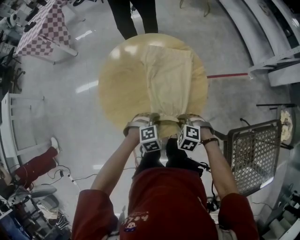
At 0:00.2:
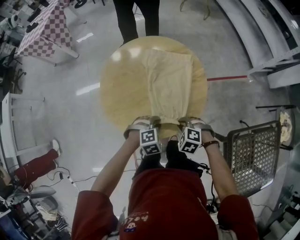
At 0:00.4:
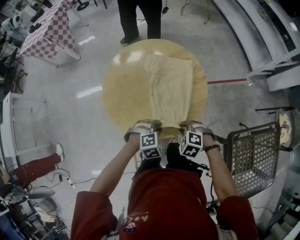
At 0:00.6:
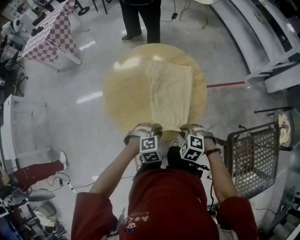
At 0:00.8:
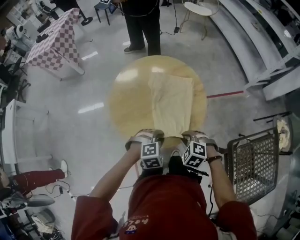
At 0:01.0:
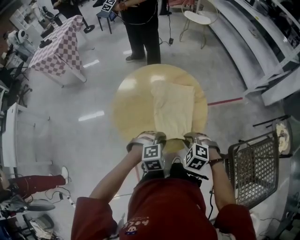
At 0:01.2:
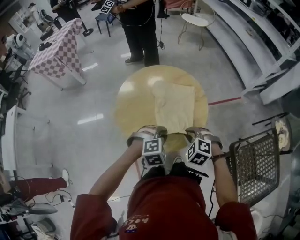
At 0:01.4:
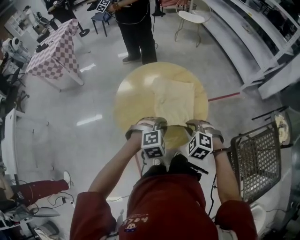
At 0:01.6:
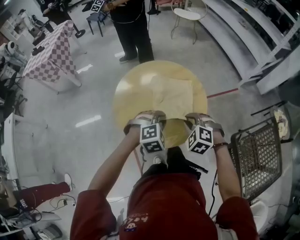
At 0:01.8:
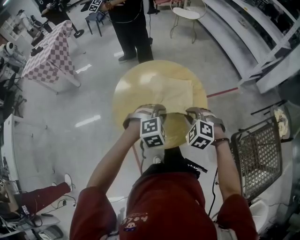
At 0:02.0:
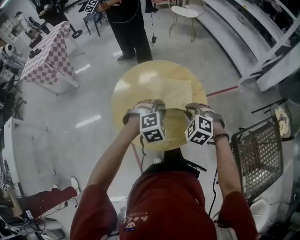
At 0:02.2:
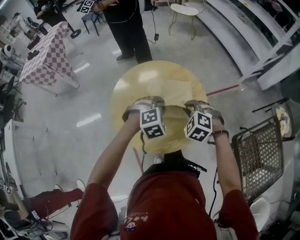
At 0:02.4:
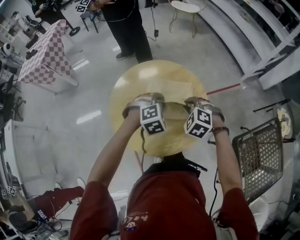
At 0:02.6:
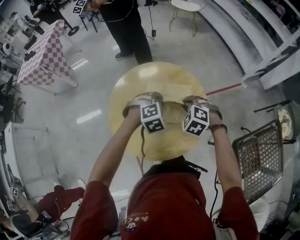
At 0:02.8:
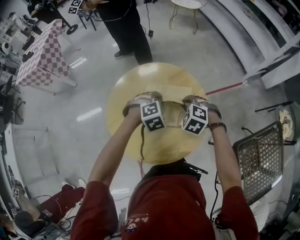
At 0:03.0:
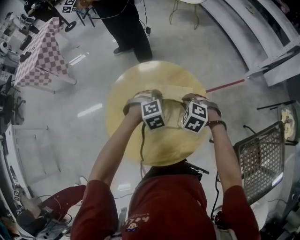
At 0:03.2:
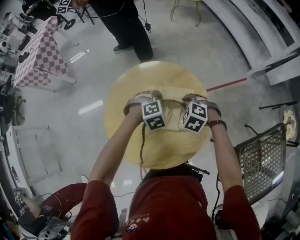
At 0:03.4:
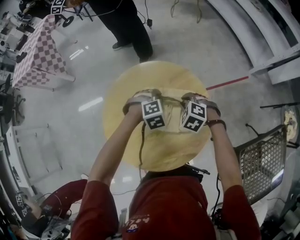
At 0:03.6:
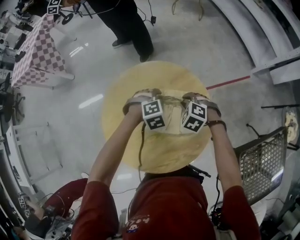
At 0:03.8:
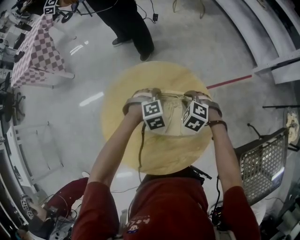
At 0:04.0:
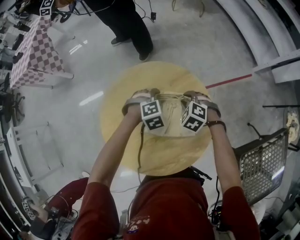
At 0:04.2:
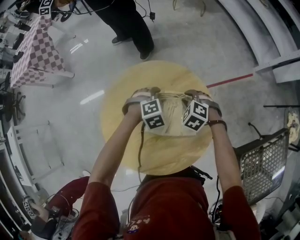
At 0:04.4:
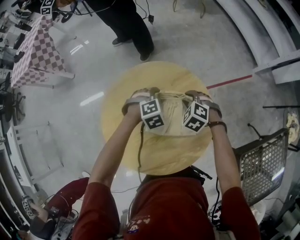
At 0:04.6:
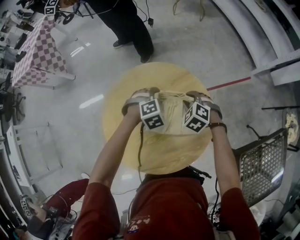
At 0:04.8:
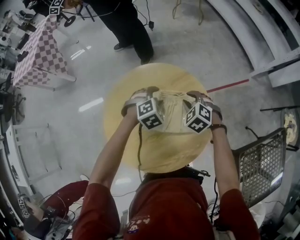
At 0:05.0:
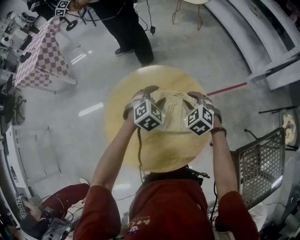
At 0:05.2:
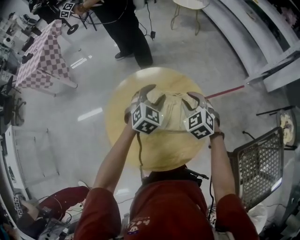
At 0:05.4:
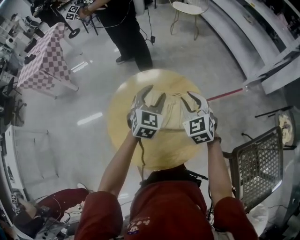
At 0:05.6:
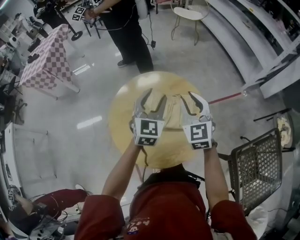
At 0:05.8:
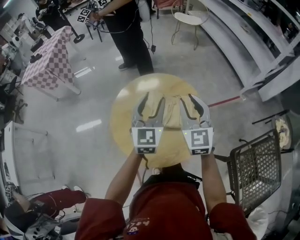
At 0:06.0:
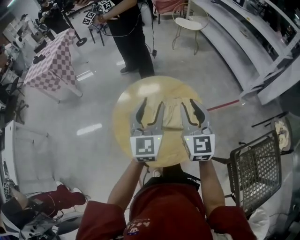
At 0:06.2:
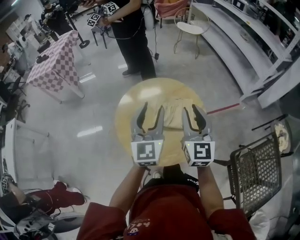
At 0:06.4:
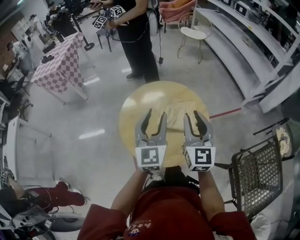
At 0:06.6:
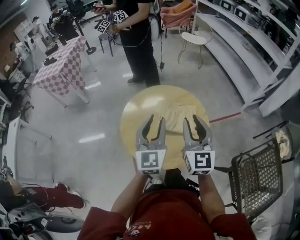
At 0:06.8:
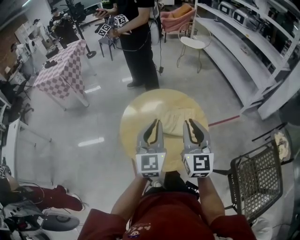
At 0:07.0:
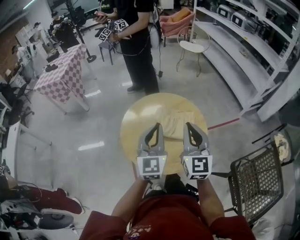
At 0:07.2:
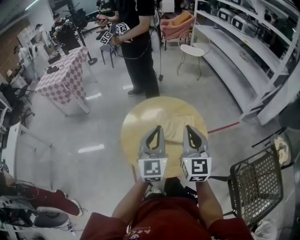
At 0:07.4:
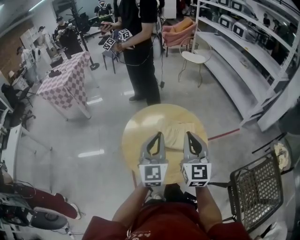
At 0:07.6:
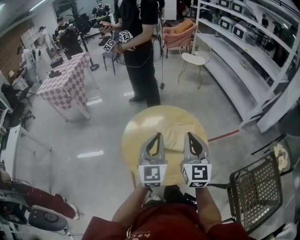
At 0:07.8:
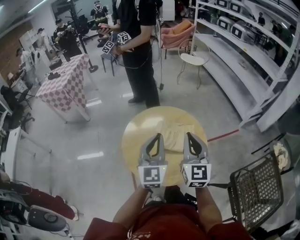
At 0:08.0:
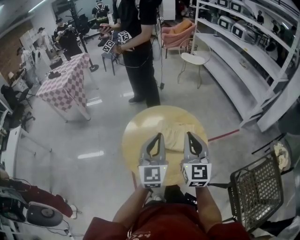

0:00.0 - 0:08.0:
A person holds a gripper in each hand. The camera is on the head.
0:00.0 - 0:01.6: The two grippers go roughly 15 cm upward. The right gripper swivels some 20 degrees.
0:01.6 - 0:03.2: The right gripper is displaced forward by approximately 20 cm. Meanwhile the left gripper is displaced forward and downward by about 25 cm.
0:03.2 - 0:04.8: The left gripper opens its fingers, while the right gripper shifts approximately 5 cm forward.
0:04.8 - 0:06.4: Both grippers move upward and backward, some 35 cm. The right gripper angles its fingers upward, by some 60 degrees. The left gripper tips its fingers upward by about 60 degrees.
0:06.4 - 0:08.0: The left gripper closes its fingers. The right gripper closes its fingers.

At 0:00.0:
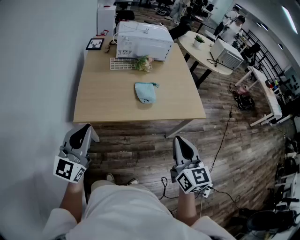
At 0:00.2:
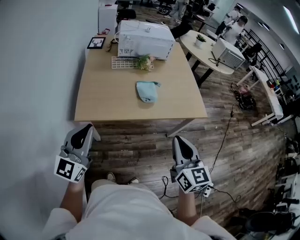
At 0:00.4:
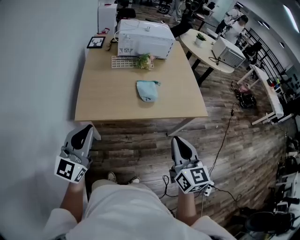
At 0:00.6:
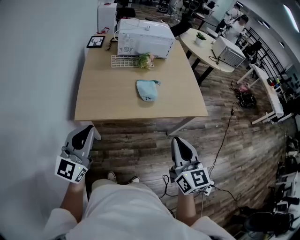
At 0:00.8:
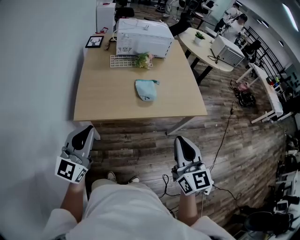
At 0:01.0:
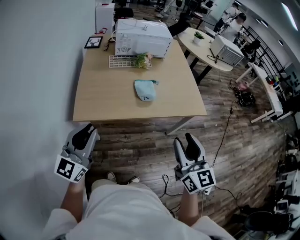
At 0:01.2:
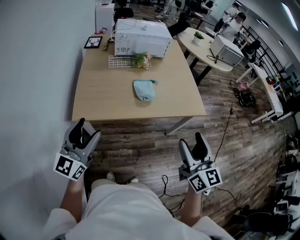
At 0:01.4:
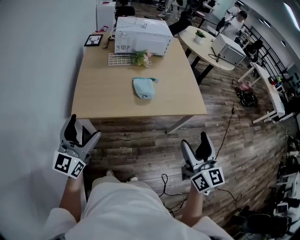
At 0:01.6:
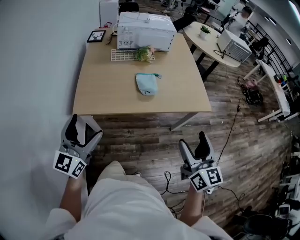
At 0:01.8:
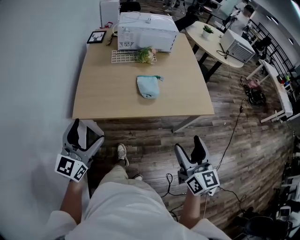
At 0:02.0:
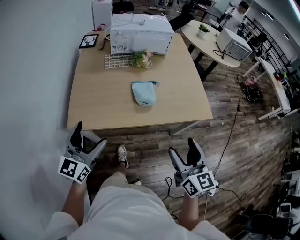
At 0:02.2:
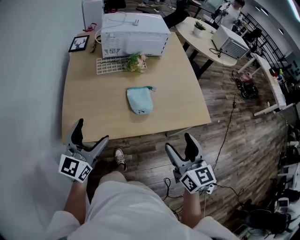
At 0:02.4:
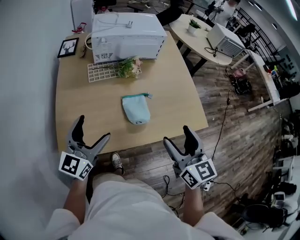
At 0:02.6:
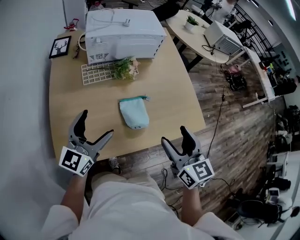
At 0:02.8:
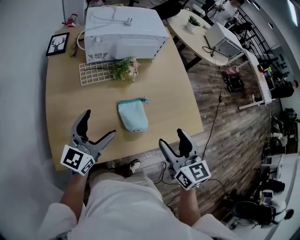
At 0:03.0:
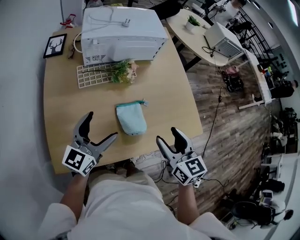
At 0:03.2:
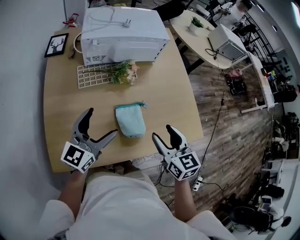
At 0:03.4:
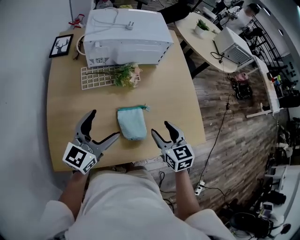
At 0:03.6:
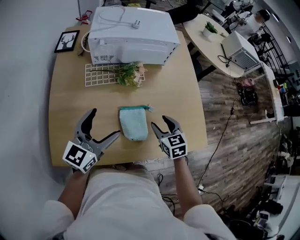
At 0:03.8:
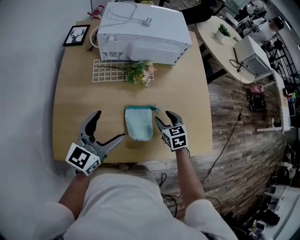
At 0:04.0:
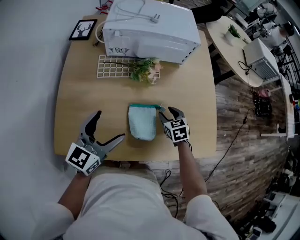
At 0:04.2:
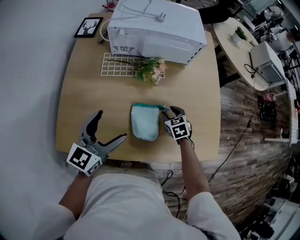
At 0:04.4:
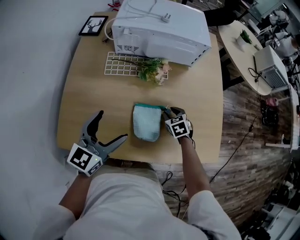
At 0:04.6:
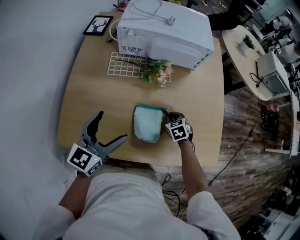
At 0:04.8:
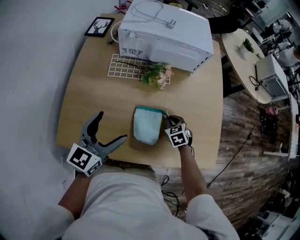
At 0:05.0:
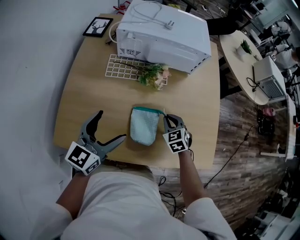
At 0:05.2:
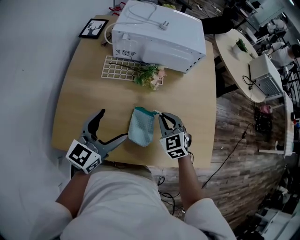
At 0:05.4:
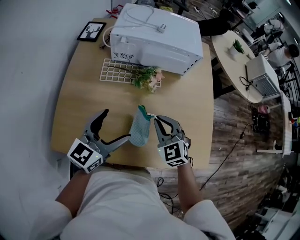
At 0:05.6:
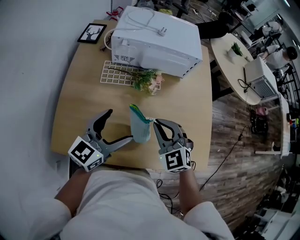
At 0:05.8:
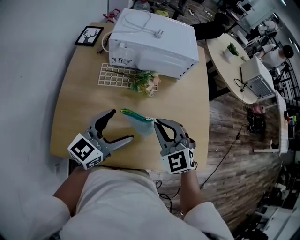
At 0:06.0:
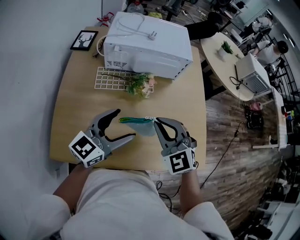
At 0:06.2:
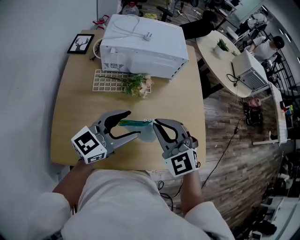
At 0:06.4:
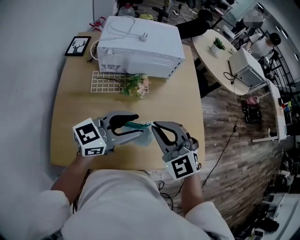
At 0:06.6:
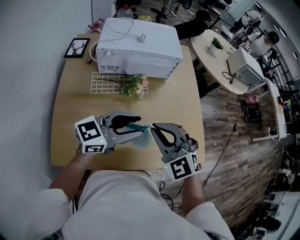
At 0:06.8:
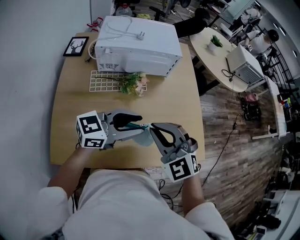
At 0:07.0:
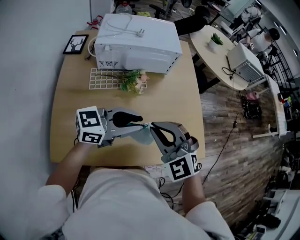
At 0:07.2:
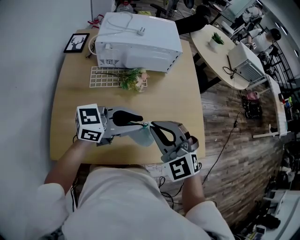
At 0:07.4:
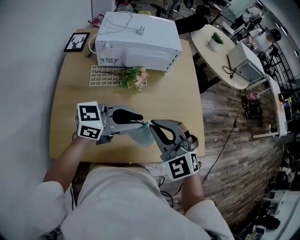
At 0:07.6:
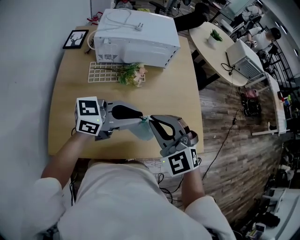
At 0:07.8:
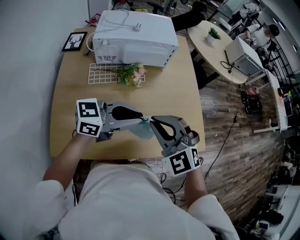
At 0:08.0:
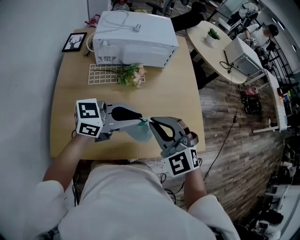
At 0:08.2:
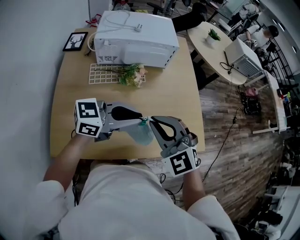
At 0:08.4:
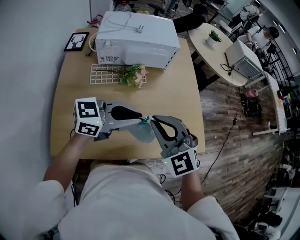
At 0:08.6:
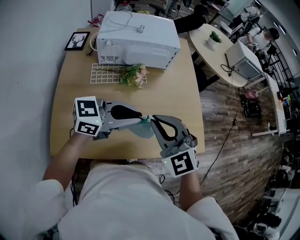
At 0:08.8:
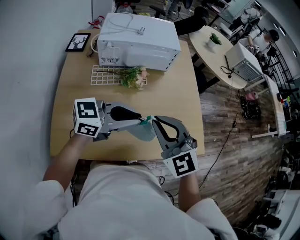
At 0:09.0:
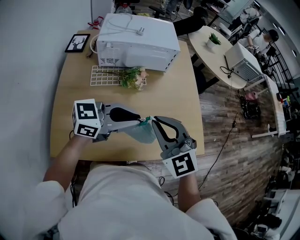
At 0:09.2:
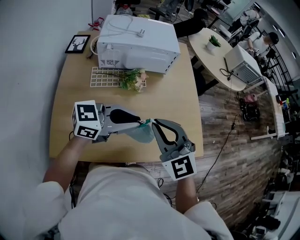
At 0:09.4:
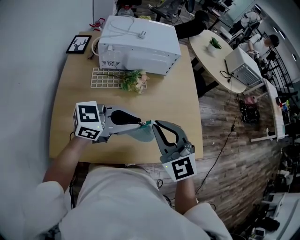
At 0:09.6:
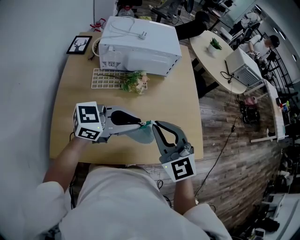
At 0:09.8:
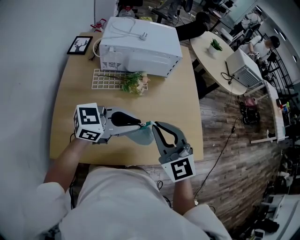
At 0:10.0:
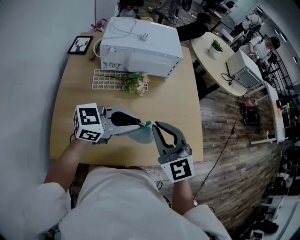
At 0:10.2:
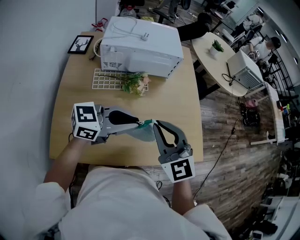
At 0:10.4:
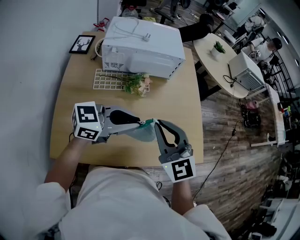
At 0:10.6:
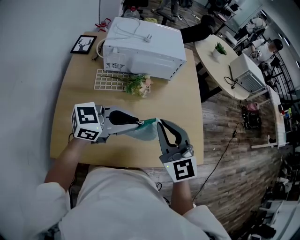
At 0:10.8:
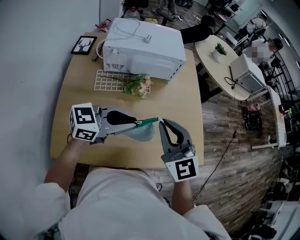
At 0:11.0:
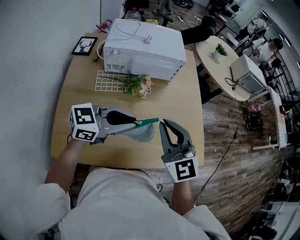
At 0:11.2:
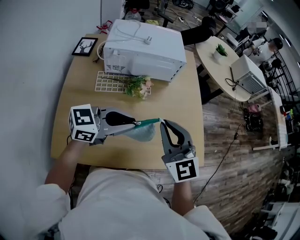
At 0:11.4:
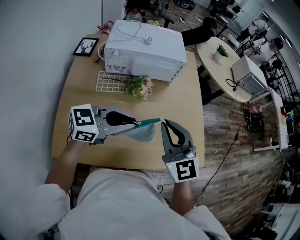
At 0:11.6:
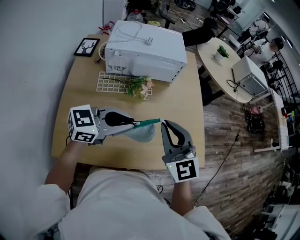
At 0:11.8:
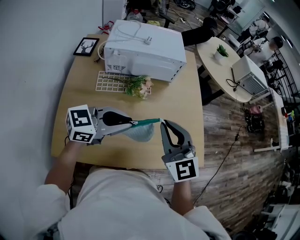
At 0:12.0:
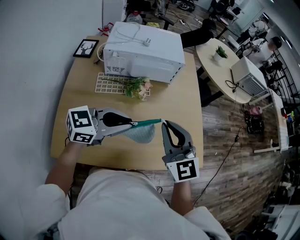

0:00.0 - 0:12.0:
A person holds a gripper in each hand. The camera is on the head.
0:00.0 - 0:01.6: The right gripper travels to the right by approximately 10 cm, and opens its fingers; the left gripper opens its fingers.
0:01.6 - 0:03.0: The two grippers go about 35 cm forward. The left gripper rotates about 20 degrees. The right gripper swivels some 20 degrees.
0:03.0 - 0:04.4: The right gripper heads downward and forward, covering roughly 35 cm, and tilts its fingers roughly 30 degrees downward.
0:04.4 - 0:06.0: The left gripper heads upward and to the right, covering about 10 cm, while the right gripper is displaced upward by approximately 30 cm, angles its fingers upward, by roughly 30 degrees, and closes up.
0:06.0 - 0:07.6: The right gripper shifts about 5 cm backward, while the left gripper goes approximately 10 cm to the right, turns by roughly 40 degrees, and closes its fingers.
0:07.6 - 0:09.0: There are only small adjustments of the grippers.
0:09.0 - 0:12.0: There are only small adjustments of the grippers.

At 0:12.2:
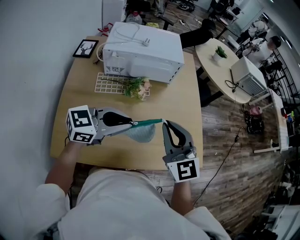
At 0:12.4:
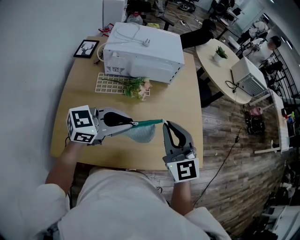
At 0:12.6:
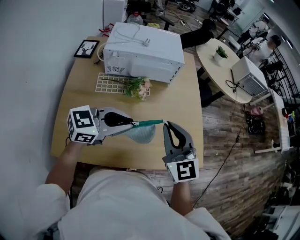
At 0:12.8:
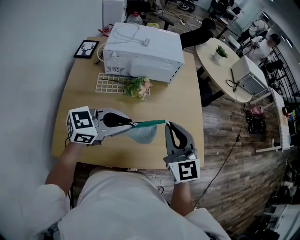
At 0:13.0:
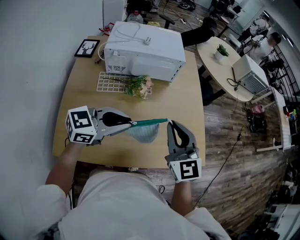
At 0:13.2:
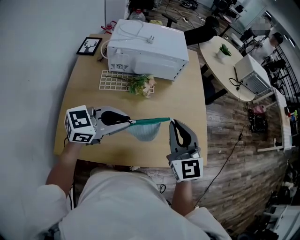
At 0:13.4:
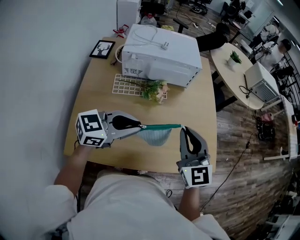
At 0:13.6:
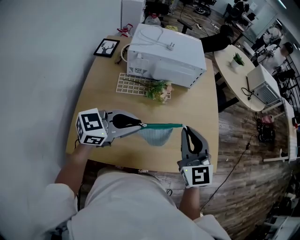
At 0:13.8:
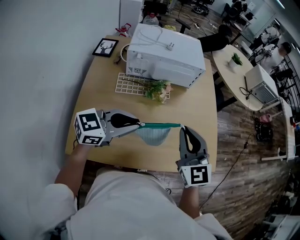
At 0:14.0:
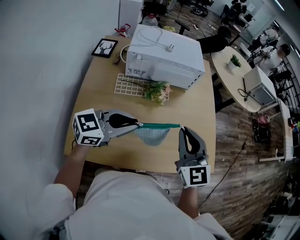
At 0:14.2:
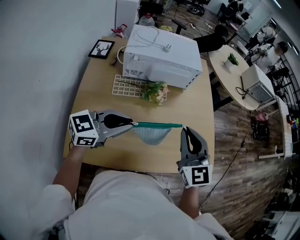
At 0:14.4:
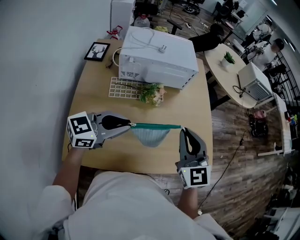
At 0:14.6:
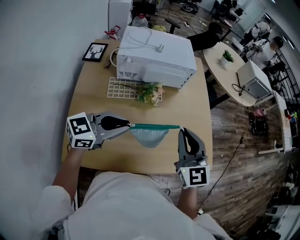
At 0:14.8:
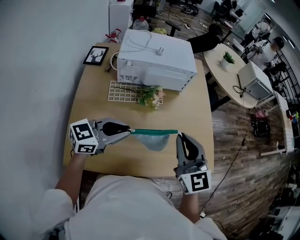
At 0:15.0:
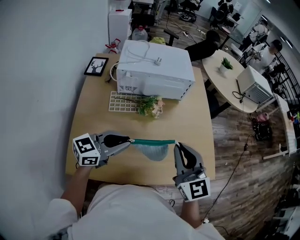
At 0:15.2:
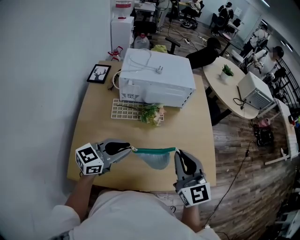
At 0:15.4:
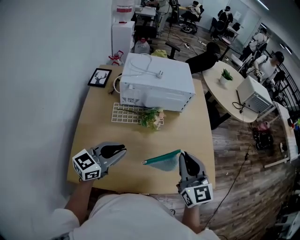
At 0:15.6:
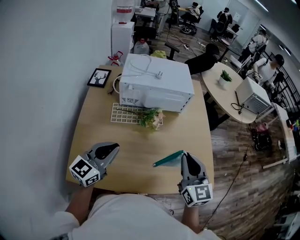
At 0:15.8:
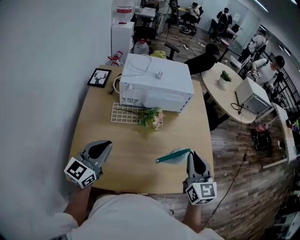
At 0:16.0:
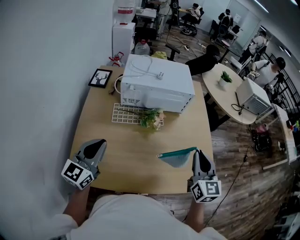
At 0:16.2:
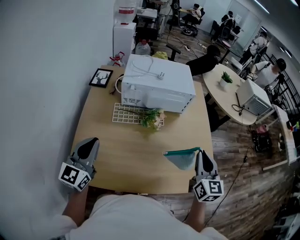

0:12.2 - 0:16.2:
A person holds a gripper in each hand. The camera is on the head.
0:12.2 - 0:13.6: The left gripper goes roughly 5 cm to the left.
0:13.6 - 0:14.8: The grippers stay close to where they were, moving slightly.
0:14.8 - 0:16.2: The left gripper travels to the left by some 15 cm, and rotates about 50 degrees; the right gripper shifts about 10 cm to the right, and turns by approximately 20 degrees.
